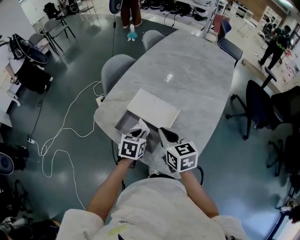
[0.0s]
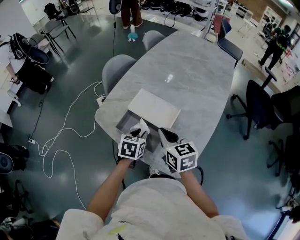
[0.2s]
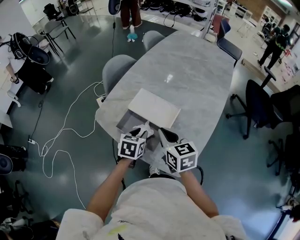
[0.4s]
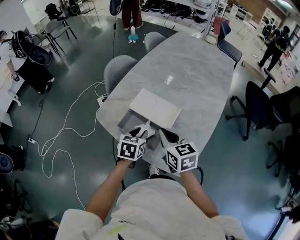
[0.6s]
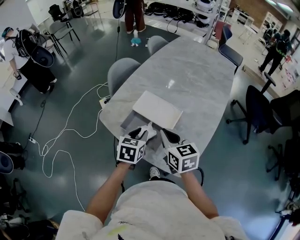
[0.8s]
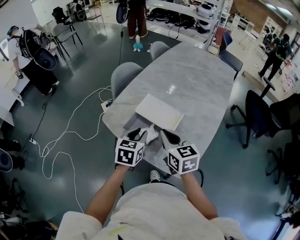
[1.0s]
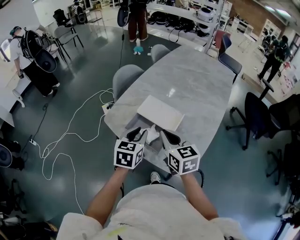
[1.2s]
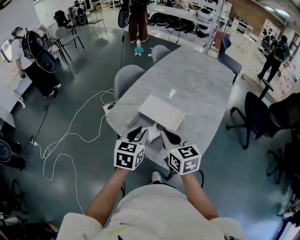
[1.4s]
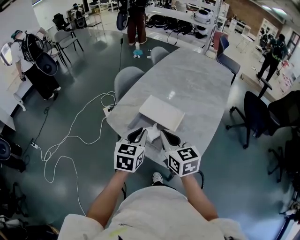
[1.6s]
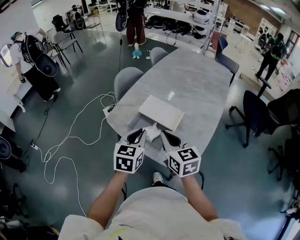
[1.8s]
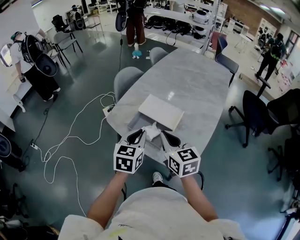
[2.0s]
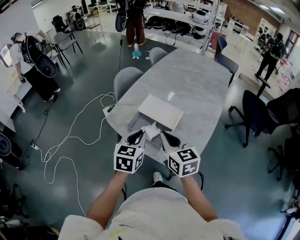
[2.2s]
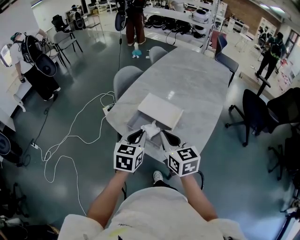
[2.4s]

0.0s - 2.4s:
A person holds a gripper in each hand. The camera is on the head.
0.0s - 1.2s: The left gripper shifts some 10 cm upward, while the right gripper goes roughly 5 cm upward.
1.2s - 2.4s: The left gripper shifts by approximately 5 cm.

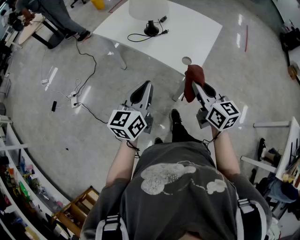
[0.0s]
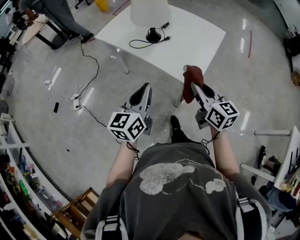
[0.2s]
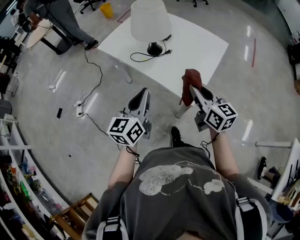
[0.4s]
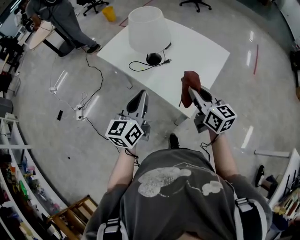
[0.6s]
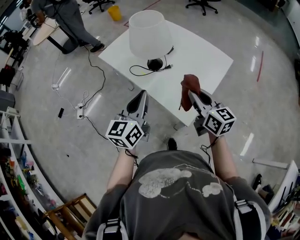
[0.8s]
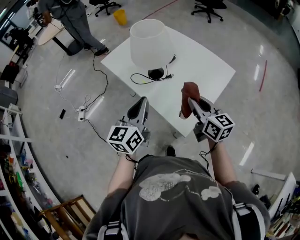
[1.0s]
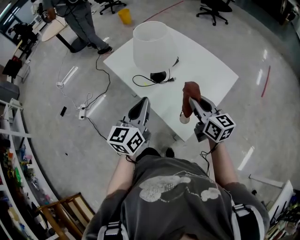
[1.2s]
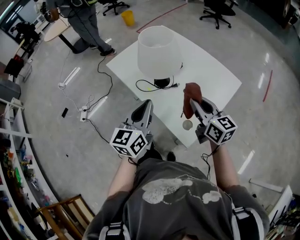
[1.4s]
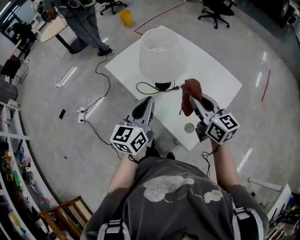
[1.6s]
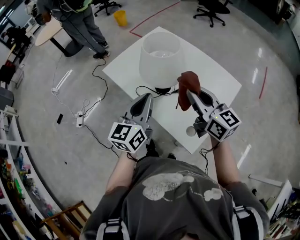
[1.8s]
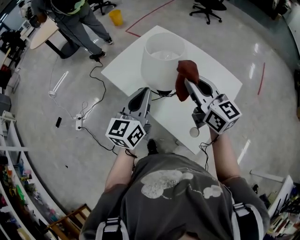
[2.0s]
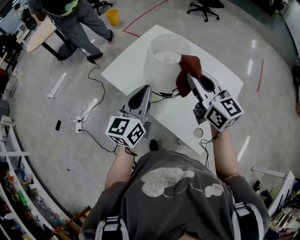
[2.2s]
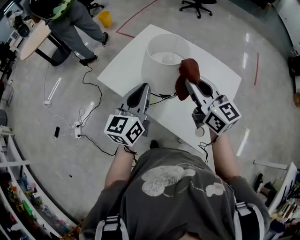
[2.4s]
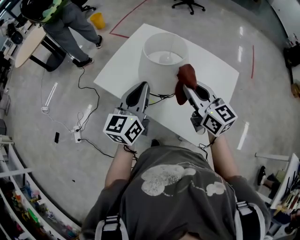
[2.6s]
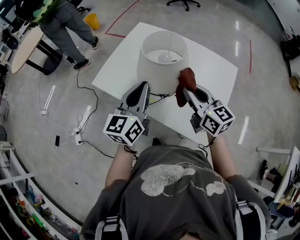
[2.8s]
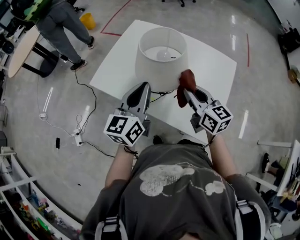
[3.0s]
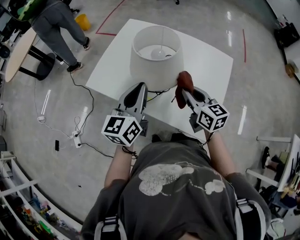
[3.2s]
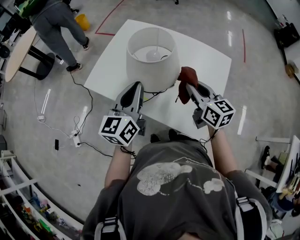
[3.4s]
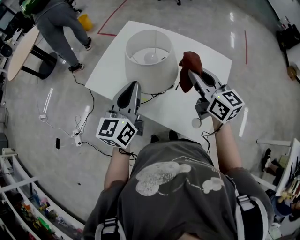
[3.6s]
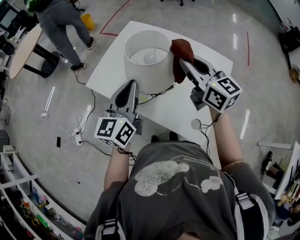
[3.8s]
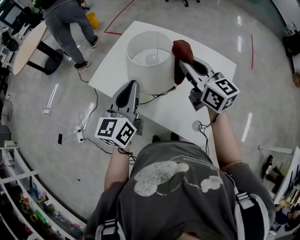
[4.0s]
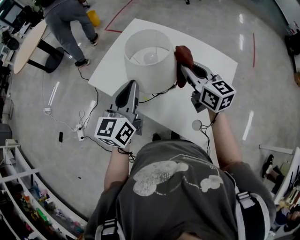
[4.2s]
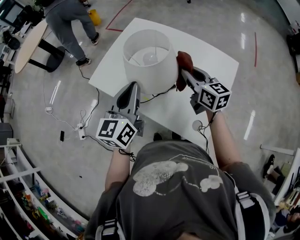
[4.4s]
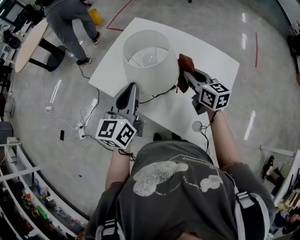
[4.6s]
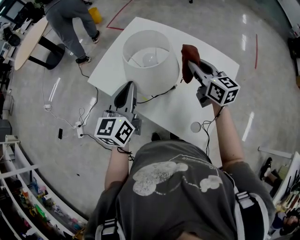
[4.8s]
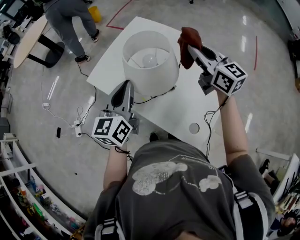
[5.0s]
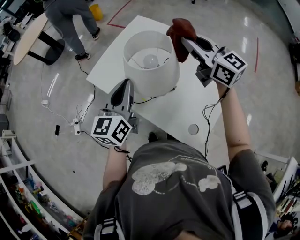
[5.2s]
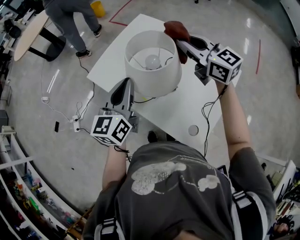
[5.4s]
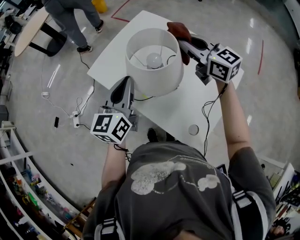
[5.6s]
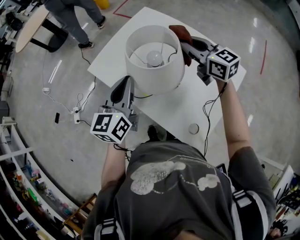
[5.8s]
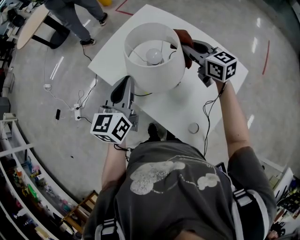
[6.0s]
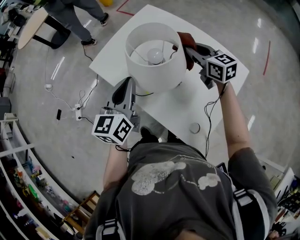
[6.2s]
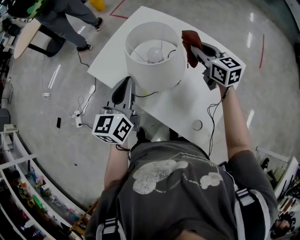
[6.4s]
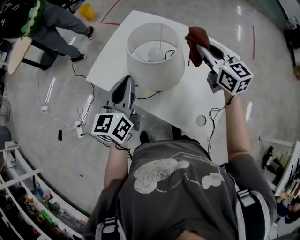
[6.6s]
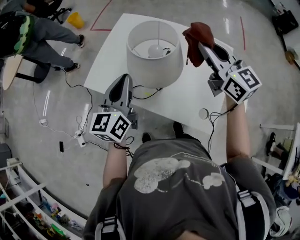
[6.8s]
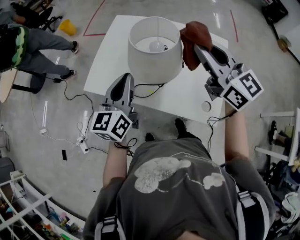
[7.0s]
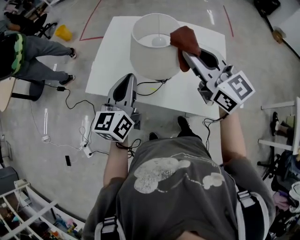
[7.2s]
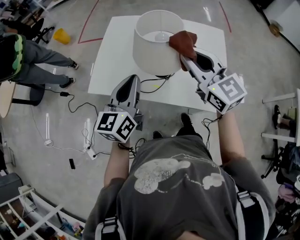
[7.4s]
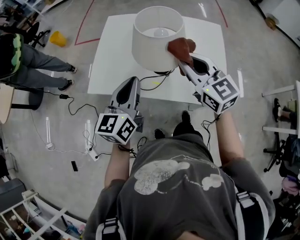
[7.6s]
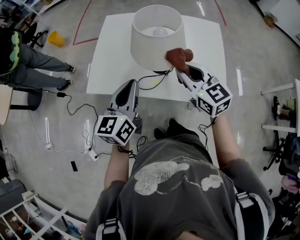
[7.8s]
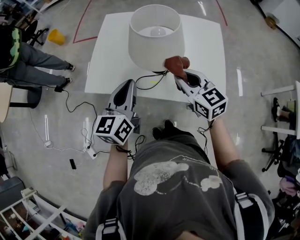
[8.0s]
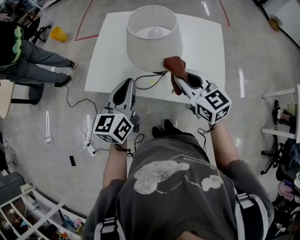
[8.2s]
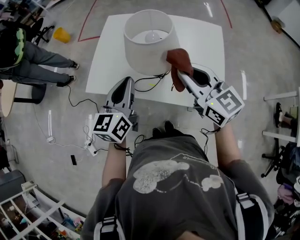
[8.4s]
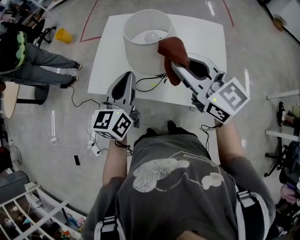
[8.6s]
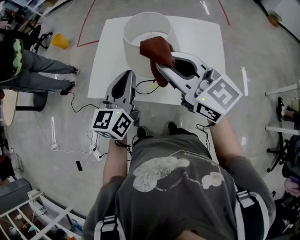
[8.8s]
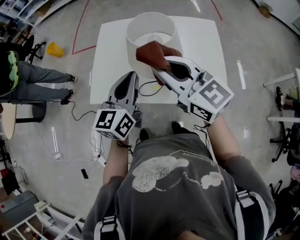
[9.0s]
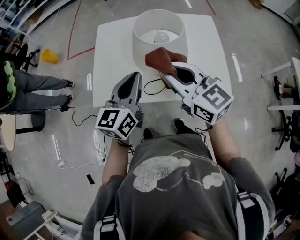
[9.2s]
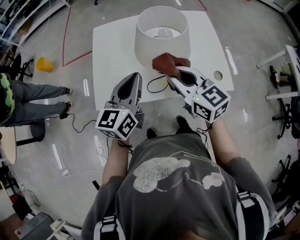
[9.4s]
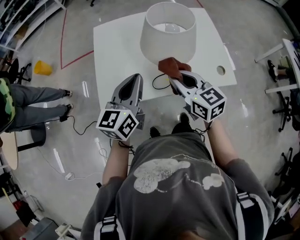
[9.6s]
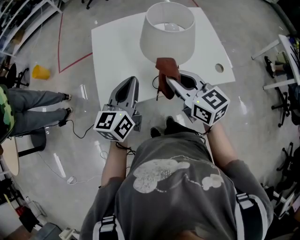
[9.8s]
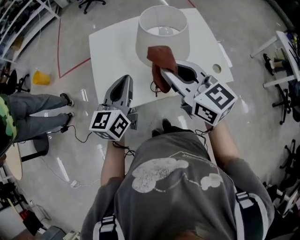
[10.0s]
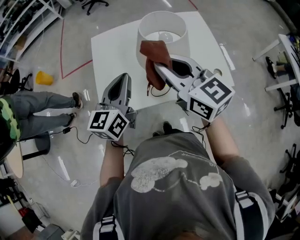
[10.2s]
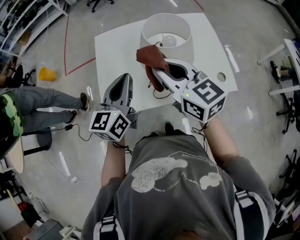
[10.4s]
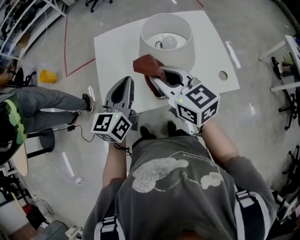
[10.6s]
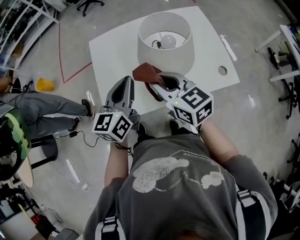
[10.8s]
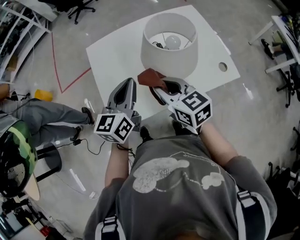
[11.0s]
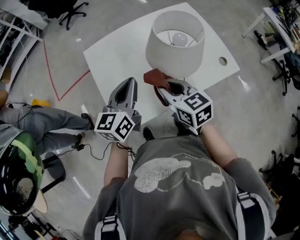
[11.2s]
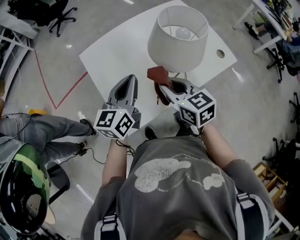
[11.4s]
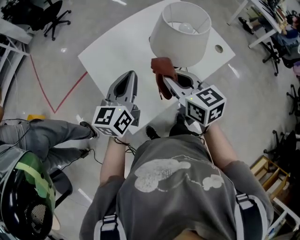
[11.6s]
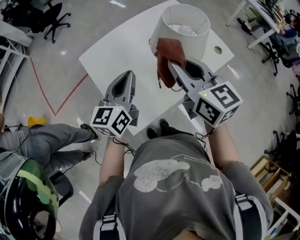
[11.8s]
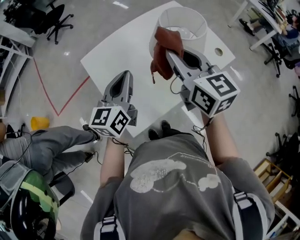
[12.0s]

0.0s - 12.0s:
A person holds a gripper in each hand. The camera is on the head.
0.0s - 1.6s: The two grippers go about 25 cm forward.
1.6s - 3.0s: The right gripper goes about 10 cm forward, to the left and downward. The left gripper goes some 15 cm forward.
3.0s - 4.4s: The right gripper moves forward, approximately 10 cm, and goes upward and returns, approximately 10 cm each way.
4.4s - 6.0s: The right gripper is displaced forward by approximately 10 cm, travels upward and back again, about 15 cm each way, and turns by some 20 degrees.
6.0s - 7.6s: The right gripper reaches roughly 15 cm upward, then returns, and changes its angle by some 40 degrees; the left gripper changes place by about 5 cm, and changes its angle by approximately 30 degrees.
7.6s - 9.0s: The left gripper shifts by about 5 cm; the right gripper moves to the left and upward, about 10 cm.
9.0s - 10.4s: The right gripper goes downward and returns, about 15 cm each way, and rotates about 20 degrees. The left gripper is displaced to the left by approximately 5 cm.
10.4s - 12.0s: The left gripper changes place by roughly 10 cm, and swivels roughly 20 degrees, while the right gripper travels downward and back again, approximately 15 cm each way, and changes its angle by about 40 degrees.

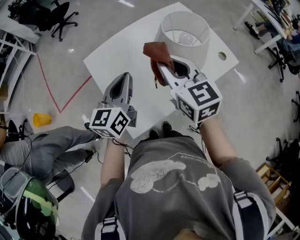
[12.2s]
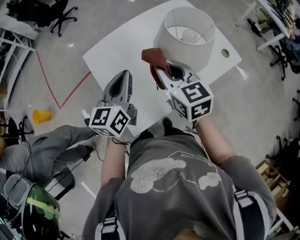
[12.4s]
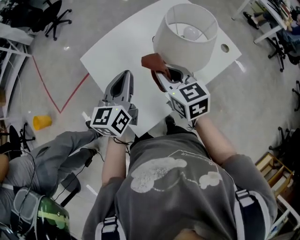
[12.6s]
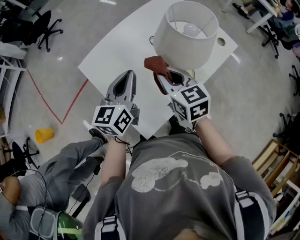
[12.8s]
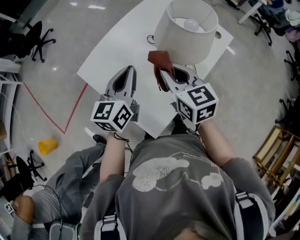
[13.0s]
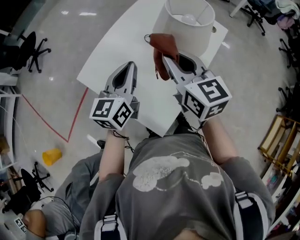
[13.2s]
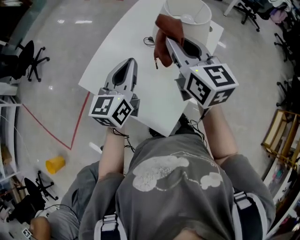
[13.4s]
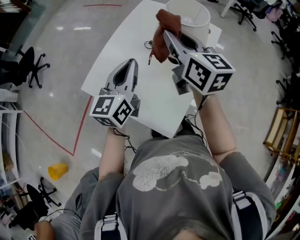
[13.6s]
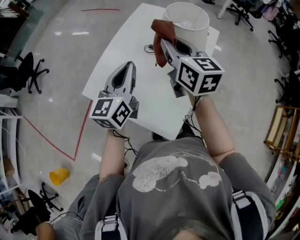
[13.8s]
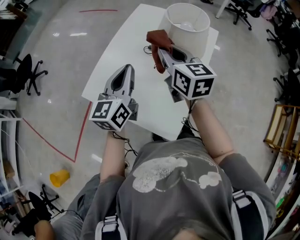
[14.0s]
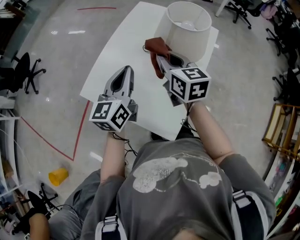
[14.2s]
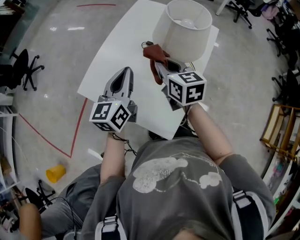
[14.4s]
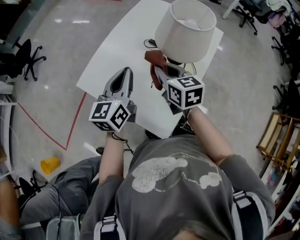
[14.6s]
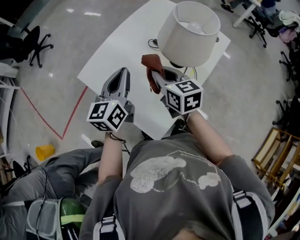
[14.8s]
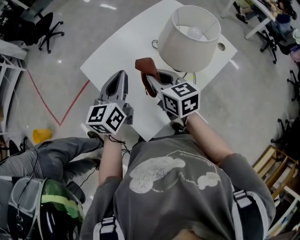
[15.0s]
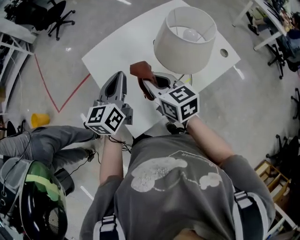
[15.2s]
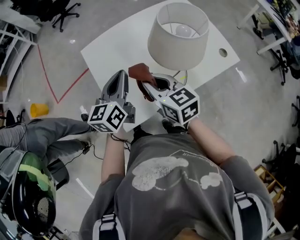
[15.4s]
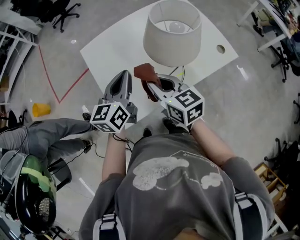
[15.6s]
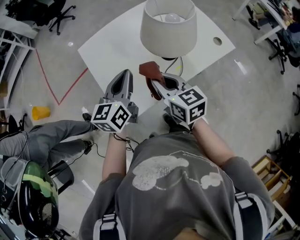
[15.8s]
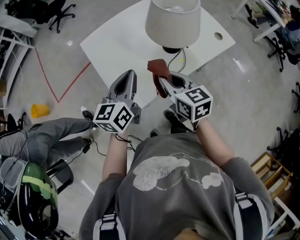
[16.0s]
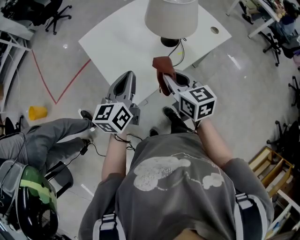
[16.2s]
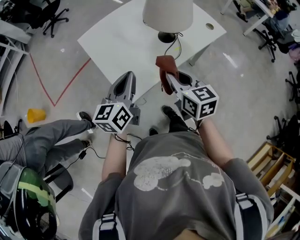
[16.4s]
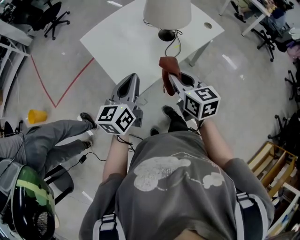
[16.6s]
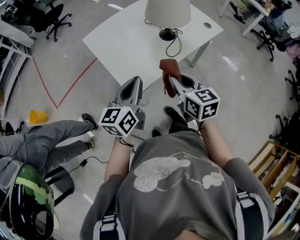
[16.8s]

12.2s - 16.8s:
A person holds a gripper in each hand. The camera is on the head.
12.2s - 13.8s: The right gripper reaches roughly 10 cm downward, then returns, and swivels approximately 40 degrees; the left gripper shifts by approximately 5 cm, and swivels roughly 30 degrees.
13.8s - 15.2s: The left gripper changes place by about 10 cm, and swivels approximately 30 degrees, while the right gripper goes about 10 cm downward, and turns by about 50 degrees.
15.2s - 16.8s: The two grippers go about 25 cm backward.

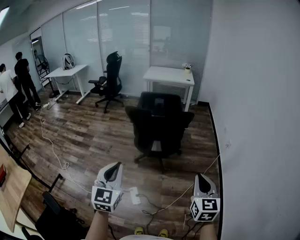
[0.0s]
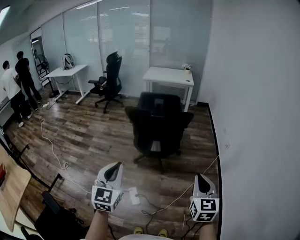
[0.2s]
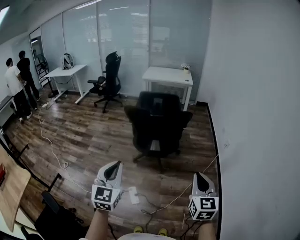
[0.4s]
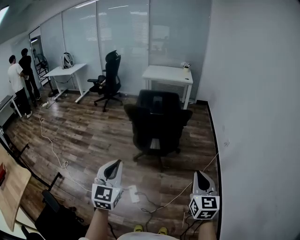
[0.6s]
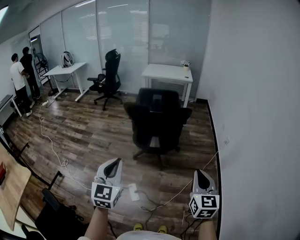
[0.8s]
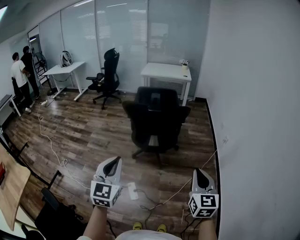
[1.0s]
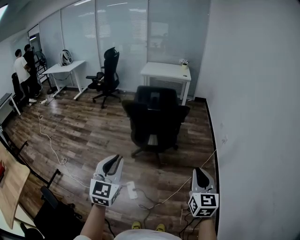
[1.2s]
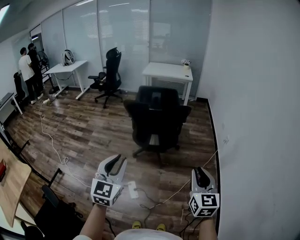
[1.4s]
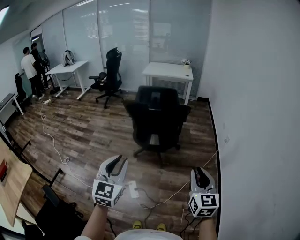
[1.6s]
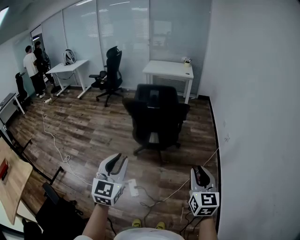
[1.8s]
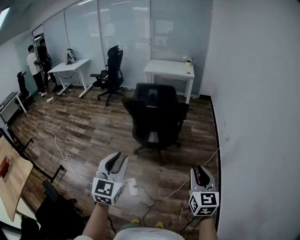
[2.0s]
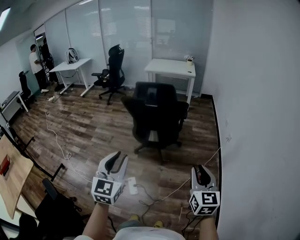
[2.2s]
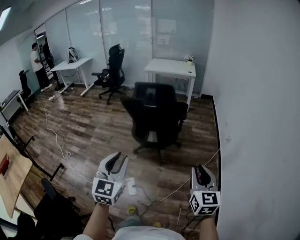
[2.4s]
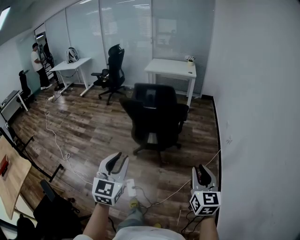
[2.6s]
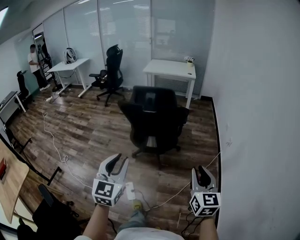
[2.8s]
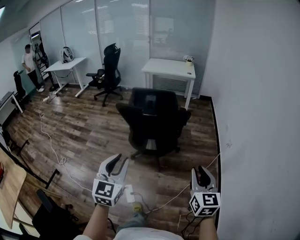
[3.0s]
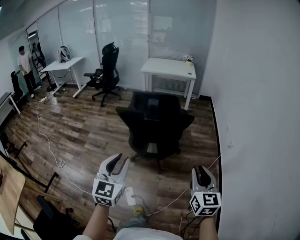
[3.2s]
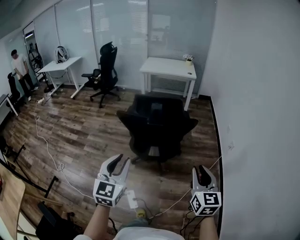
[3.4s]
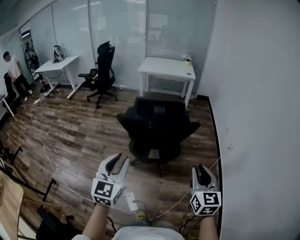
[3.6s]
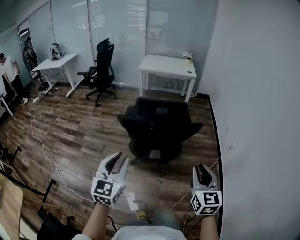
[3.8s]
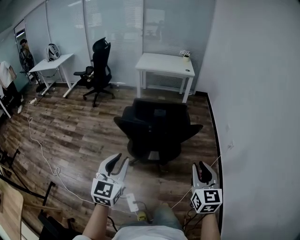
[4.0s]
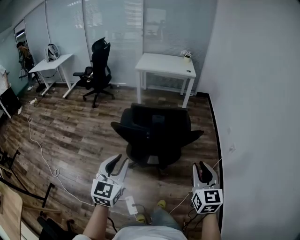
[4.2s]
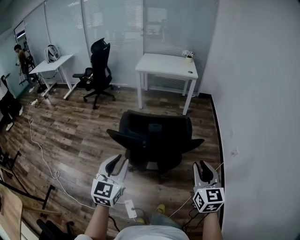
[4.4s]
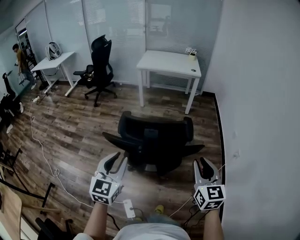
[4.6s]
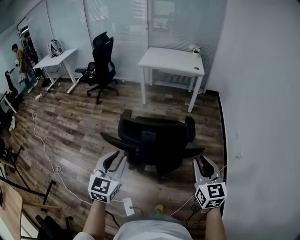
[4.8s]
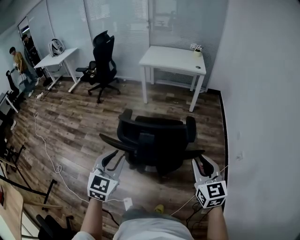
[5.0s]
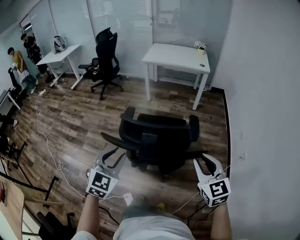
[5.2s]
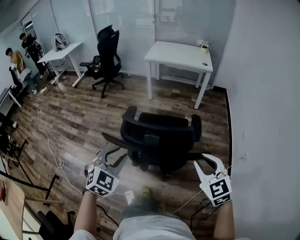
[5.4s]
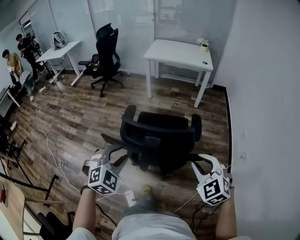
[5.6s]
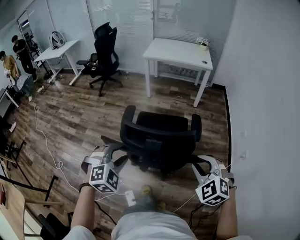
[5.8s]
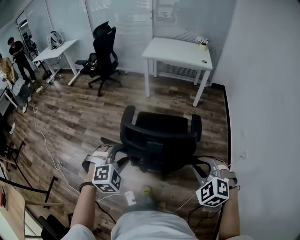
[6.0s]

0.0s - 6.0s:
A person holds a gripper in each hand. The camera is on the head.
0.0s - 1.6s: The left gripper changes place by roughly 5 cm.
1.6s - 3.0s: The two grippers go about 15 cm forward.
3.0s - 4.4s: Both grippers move forward, approximately 30 cm.
4.4s - 6.0s: The grippers both shift forward and downward by approximately 20 cm. The right gripper rotates around the line of its fingers by some 50 degrees, counterclockwise from behind; the left gripper tips its fingers downward by about 40 degrees, and opens its fingers.
